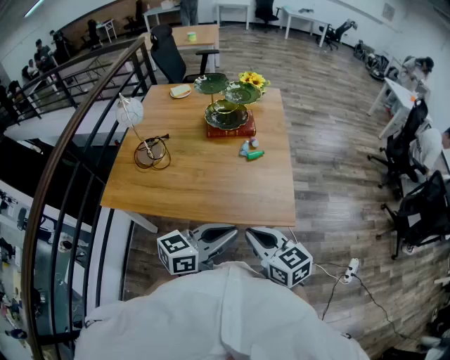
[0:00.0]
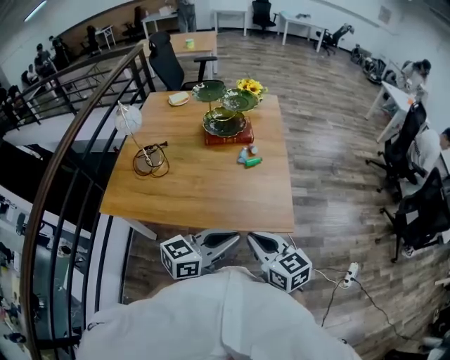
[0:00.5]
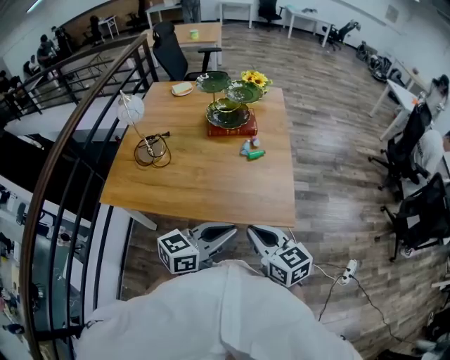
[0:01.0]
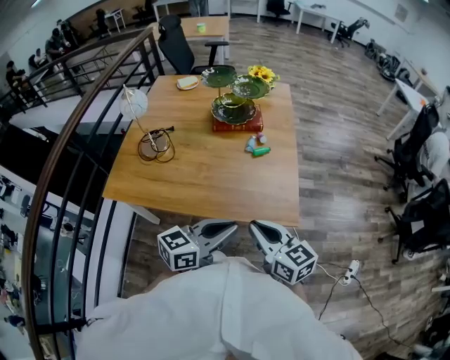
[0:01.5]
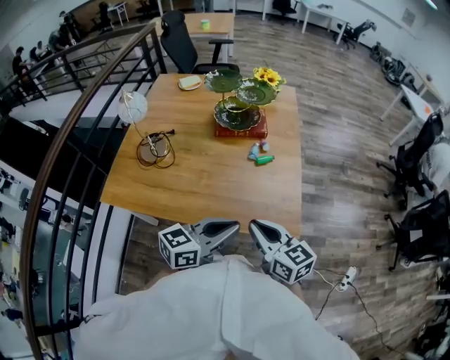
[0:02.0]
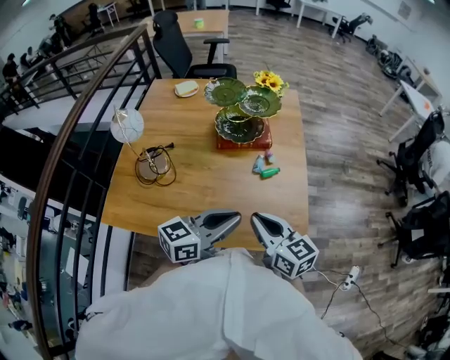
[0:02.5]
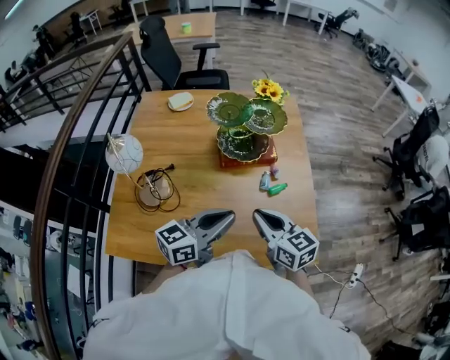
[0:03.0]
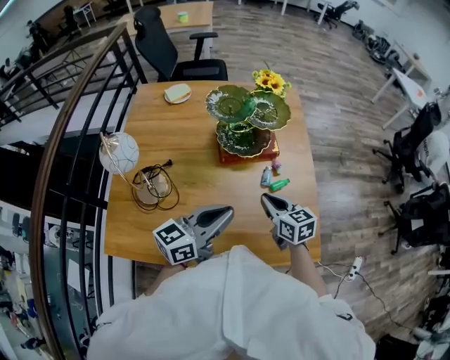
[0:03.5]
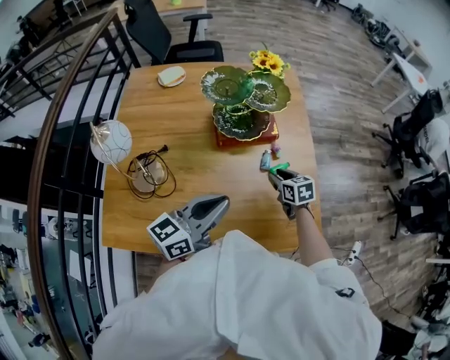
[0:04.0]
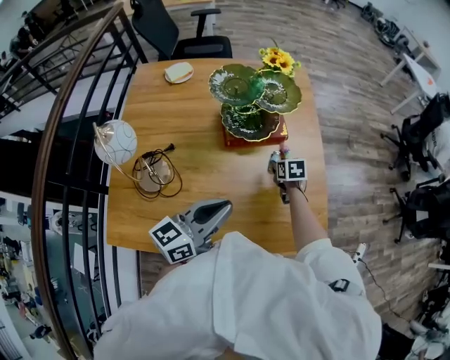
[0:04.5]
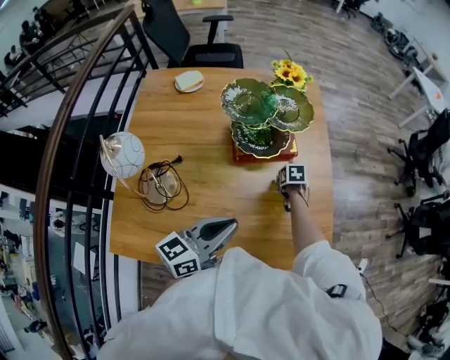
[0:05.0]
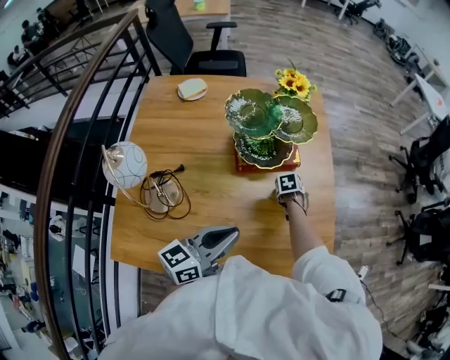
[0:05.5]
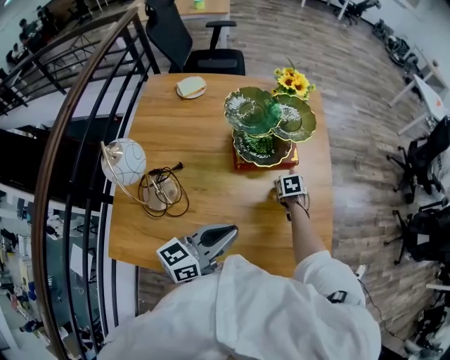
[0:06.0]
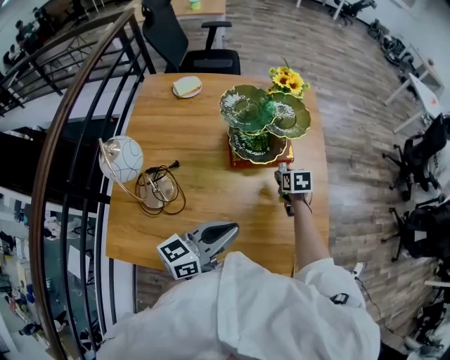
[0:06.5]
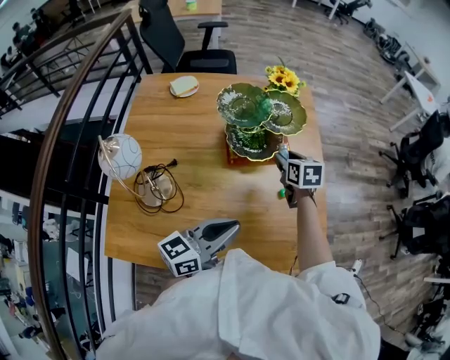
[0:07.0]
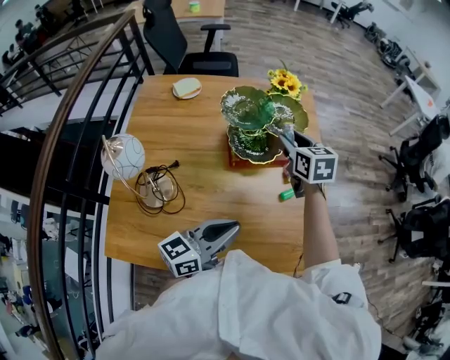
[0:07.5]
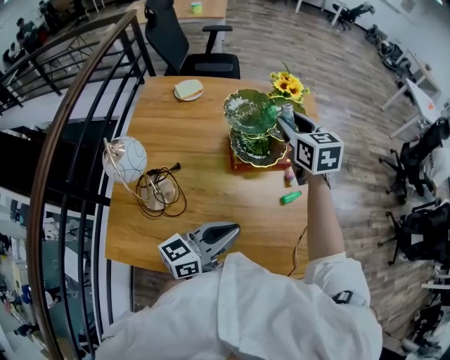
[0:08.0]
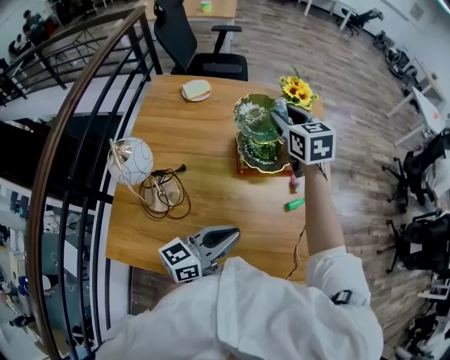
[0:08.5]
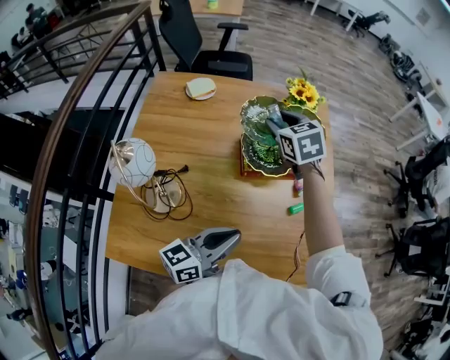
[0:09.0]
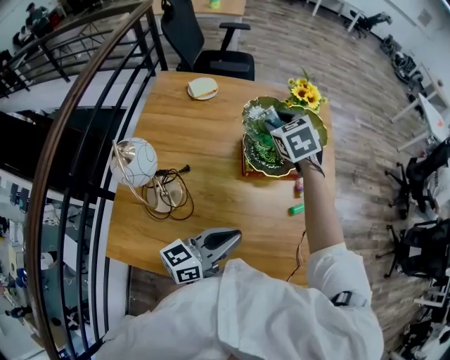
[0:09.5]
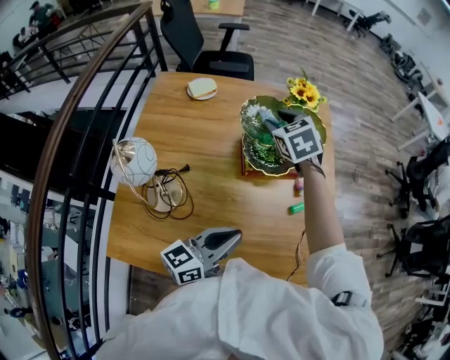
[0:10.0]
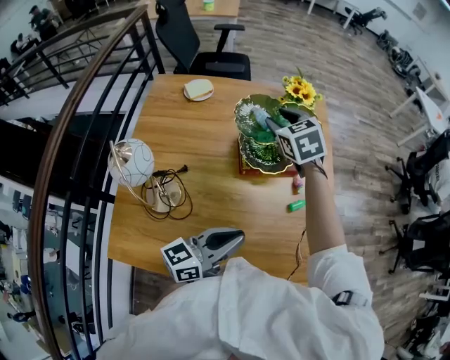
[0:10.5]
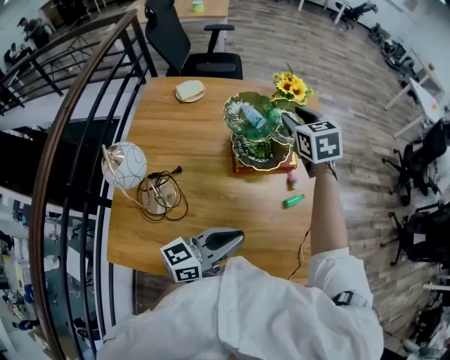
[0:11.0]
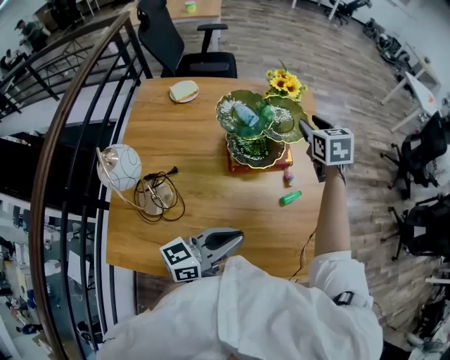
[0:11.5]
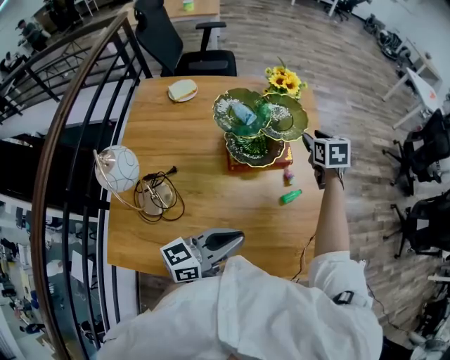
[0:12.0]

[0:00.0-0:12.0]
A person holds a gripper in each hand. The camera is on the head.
0:00.0 to 0:02.0: Both grippers move forward, about 5 cm.
0:02.0 to 0:04.0: The right gripper moves forward and downward, approximately 40 cm, swivels roughly 30 degrees, and opens its fingers, while the left gripper travels forward and to the left by roughly 25 cm.
0:04.0 to 0:06.0: The right gripper changes place by roughly 15 cm, and swivels some 30 degrees.
0:06.0 to 0:08.0: The right gripper travels upward by some 35 cm, and tilts its fingers roughly 50 degrees upward.
0:08.0 to 0:10.0: The right gripper goes some 10 cm to the left, and changes its angle by roughly 20 degrees.
0:10.0 to 0:12.0: The right gripper travels to the right by some 20 cm, and changes its angle by approximately 30 degrees. Meanwhile the left gripper is displaced to the right by approximately 5 cm.

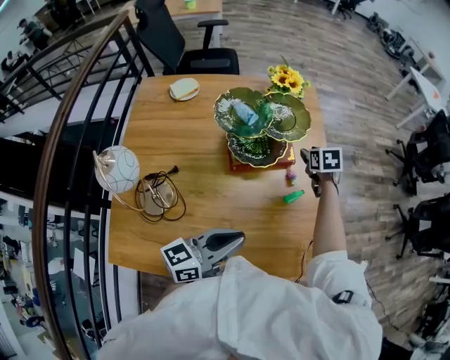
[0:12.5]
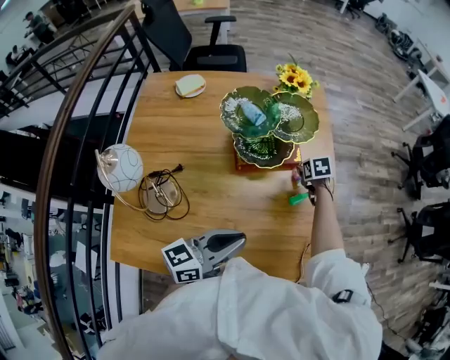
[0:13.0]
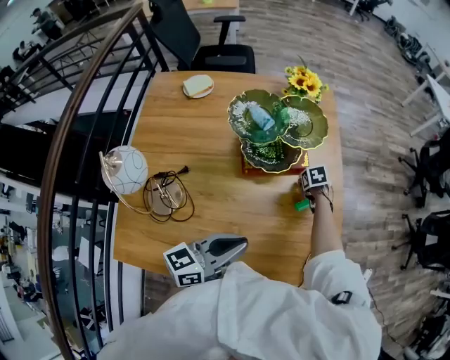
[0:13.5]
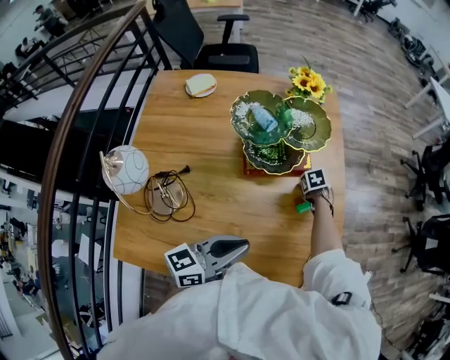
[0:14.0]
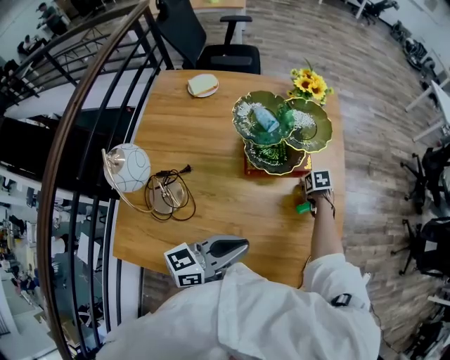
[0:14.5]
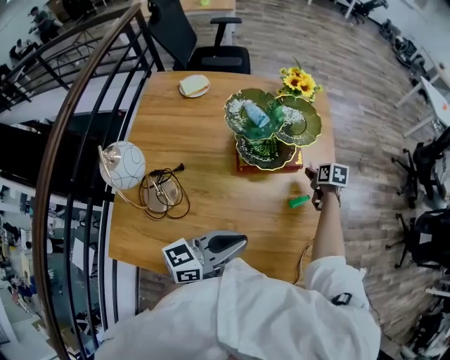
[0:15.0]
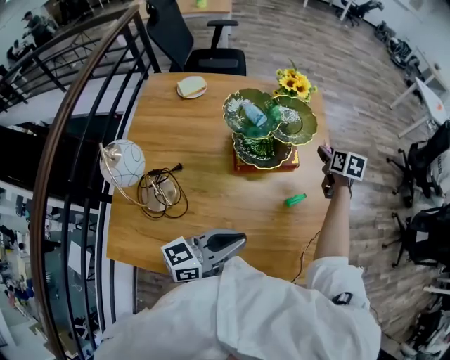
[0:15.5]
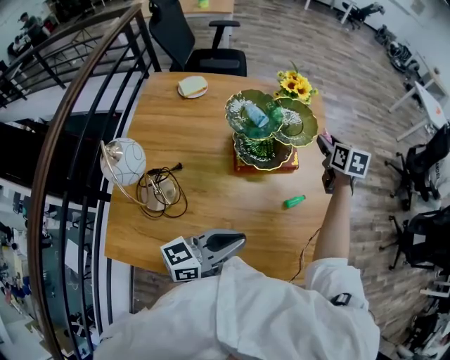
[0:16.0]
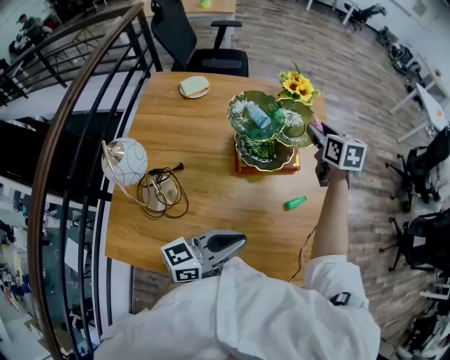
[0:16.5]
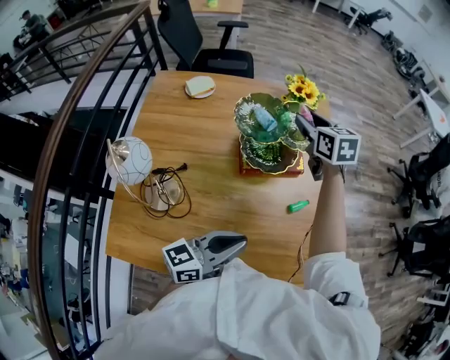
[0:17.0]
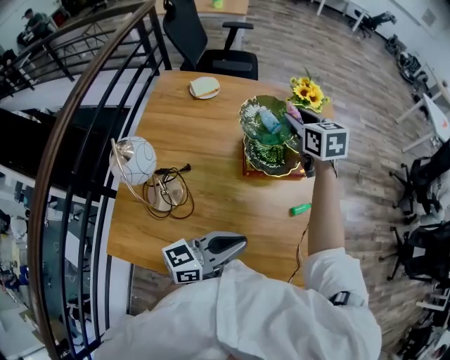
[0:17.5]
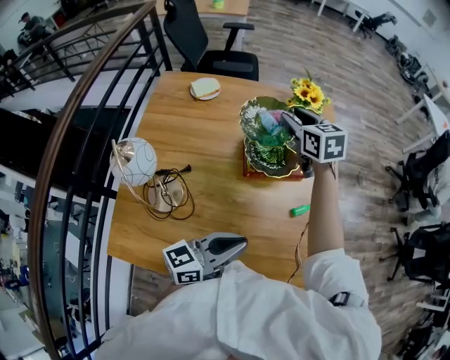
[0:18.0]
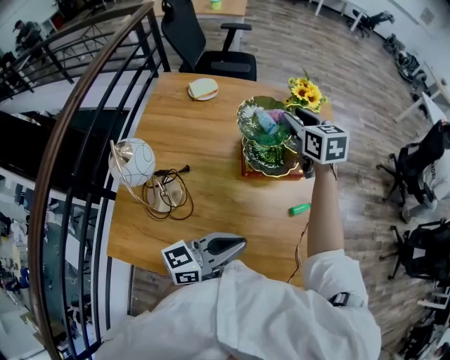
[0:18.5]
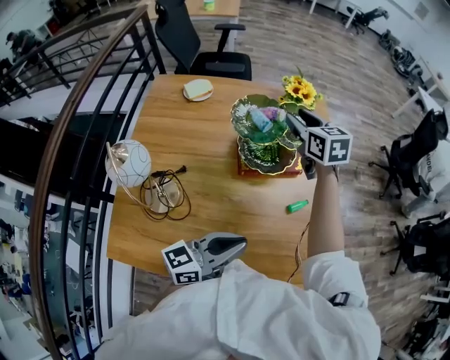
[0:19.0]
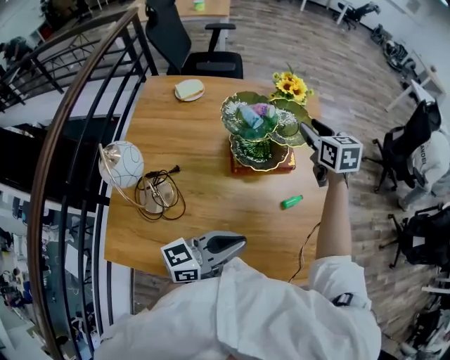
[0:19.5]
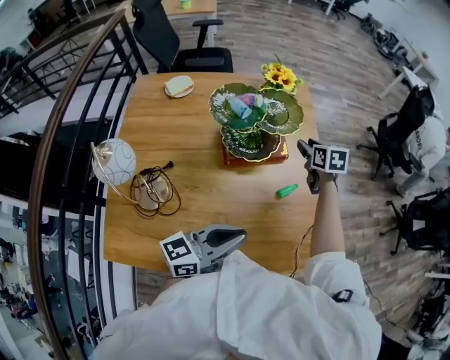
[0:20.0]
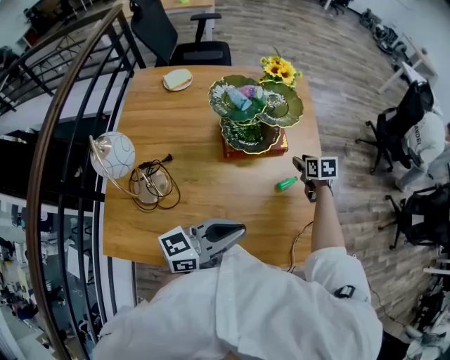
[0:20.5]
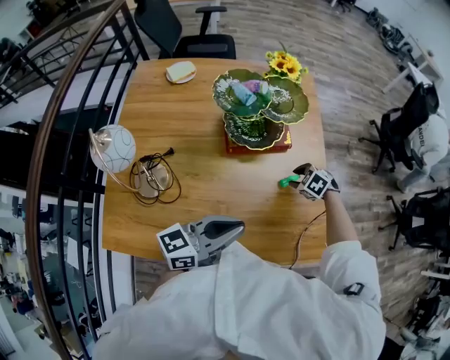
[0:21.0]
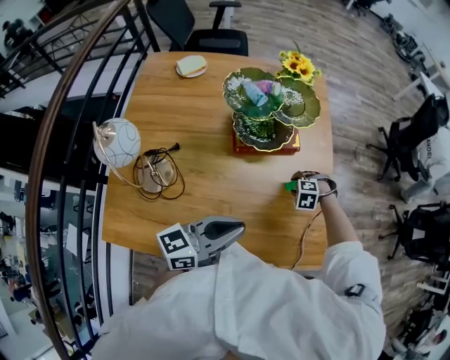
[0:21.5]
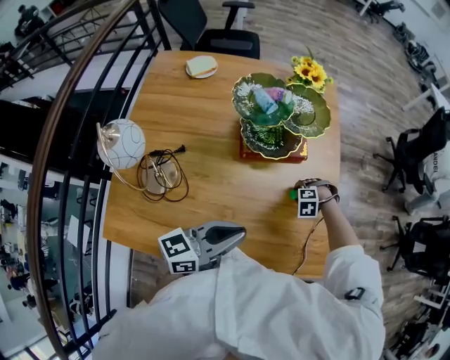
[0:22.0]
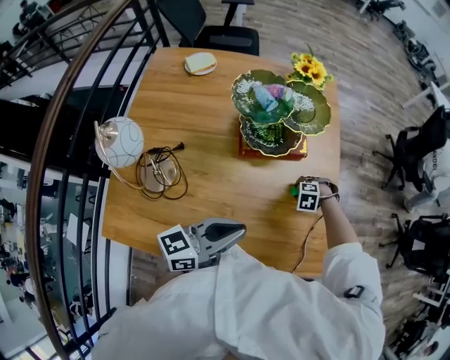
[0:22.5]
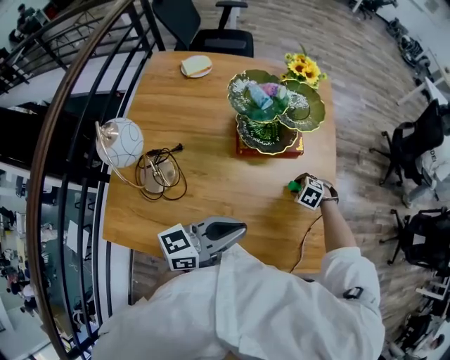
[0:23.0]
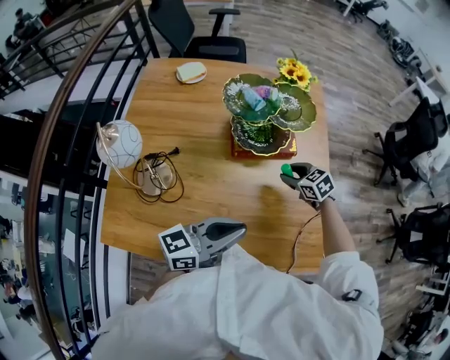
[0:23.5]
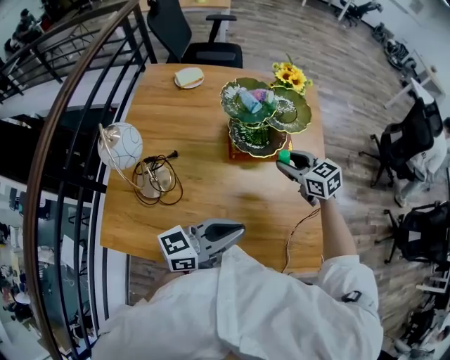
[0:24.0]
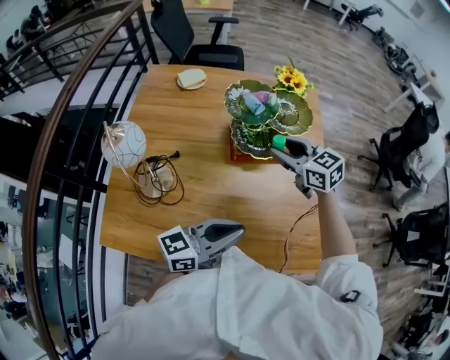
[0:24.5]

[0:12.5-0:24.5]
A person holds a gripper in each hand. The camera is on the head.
0:12.5 to 0:14.5: The right gripper is displaced downward by roughly 15 cm, and rotates about 20 degrees.
0:14.5 to 0:16.5: The right gripper shifts roughly 30 cm upward, and points its fingers roughly 40 degrees further upward.
0:16.5 to 0:18.5: The right gripper shifts approximately 10 cm to the left.
0:18.5 to 0:20.5: The right gripper travels downward and to the right by about 30 cm, and changes its angle by roughly 30 degrees.
0:20.5 to 0:22.5: The right gripper goes about 15 cm downward, and rotates around the line of its fingers by about 80 degrees, counterclockwise from behind.
0:22.5 to 0:24.5: The right gripper shifts roughly 30 cm upward, and tips its fingers upward by roughly 70 degrees.

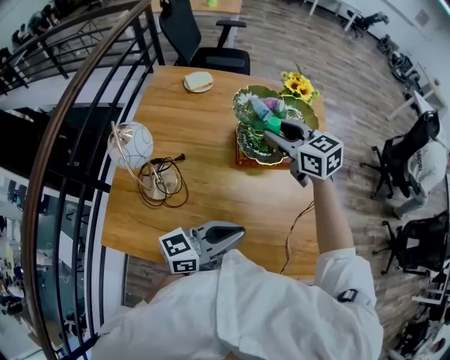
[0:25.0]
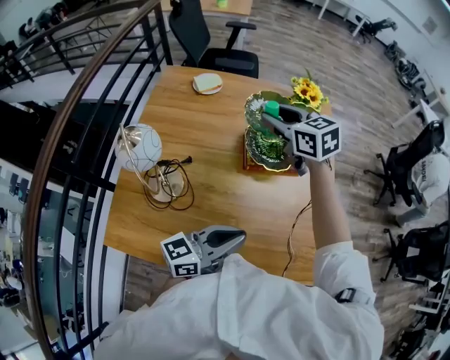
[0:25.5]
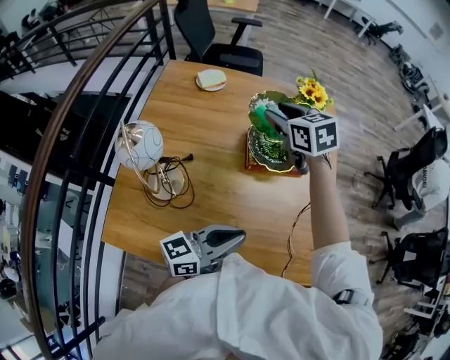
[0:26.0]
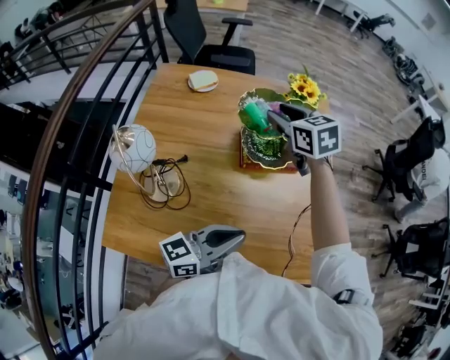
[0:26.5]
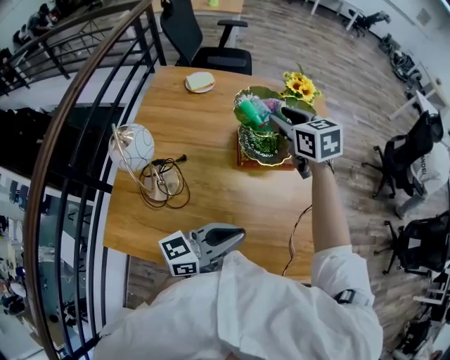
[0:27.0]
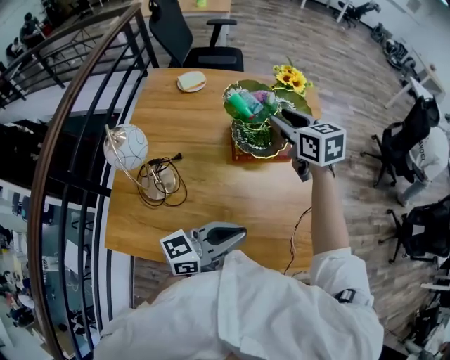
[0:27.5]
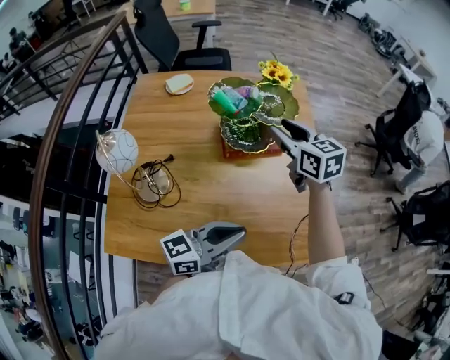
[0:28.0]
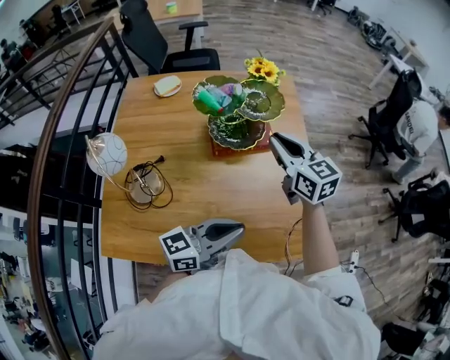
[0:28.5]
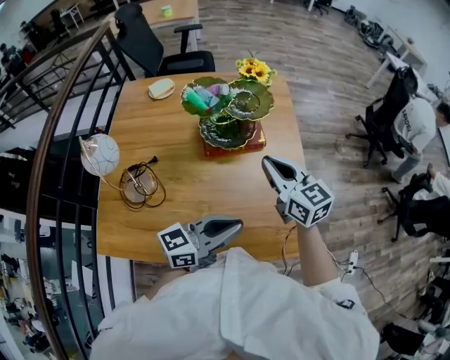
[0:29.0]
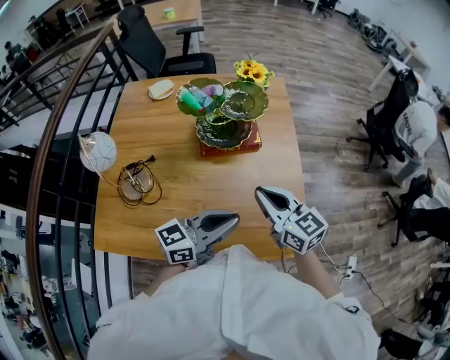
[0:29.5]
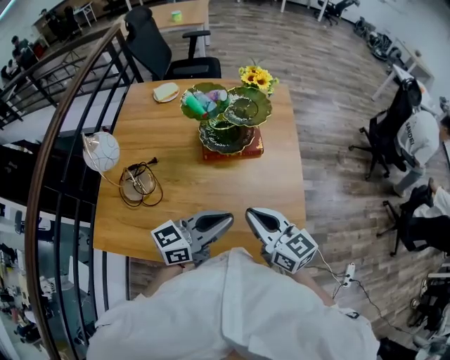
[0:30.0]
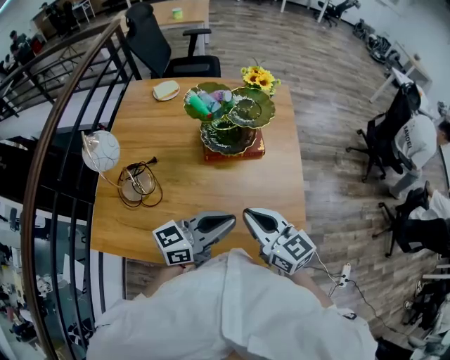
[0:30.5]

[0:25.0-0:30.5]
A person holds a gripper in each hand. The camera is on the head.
0:27.0 to 0:28.5: The right gripper shifts roughly 15 cm to the right and backward, and closes. The left gripper heads to the right, covering about 5 cm.
0:28.5 to 0:30.5: The right gripper travels backward by some 20 cm.
